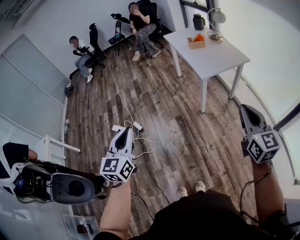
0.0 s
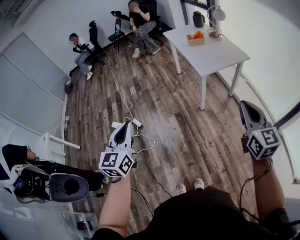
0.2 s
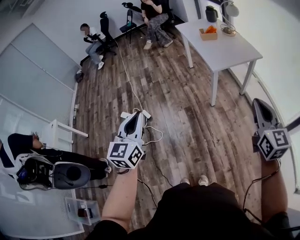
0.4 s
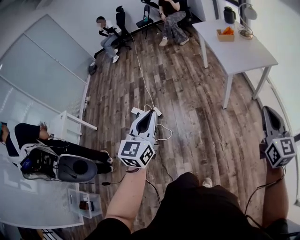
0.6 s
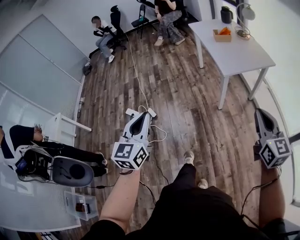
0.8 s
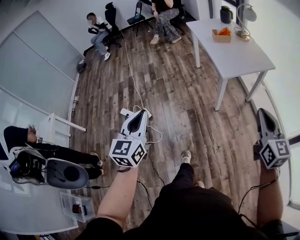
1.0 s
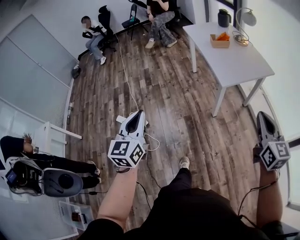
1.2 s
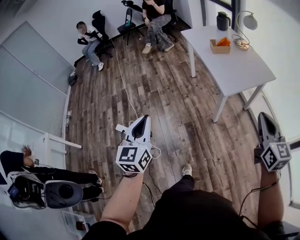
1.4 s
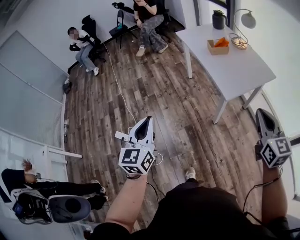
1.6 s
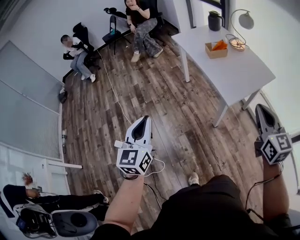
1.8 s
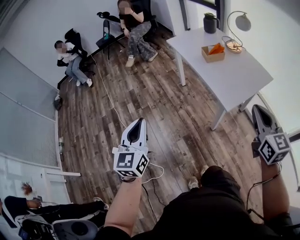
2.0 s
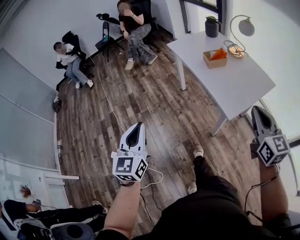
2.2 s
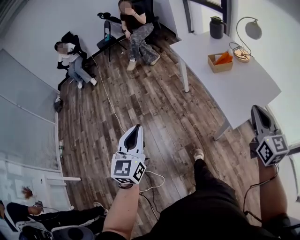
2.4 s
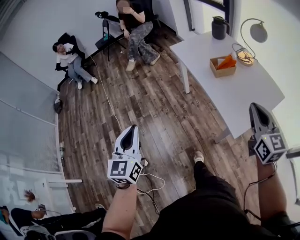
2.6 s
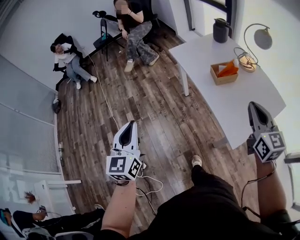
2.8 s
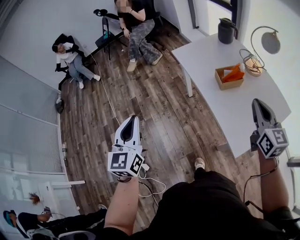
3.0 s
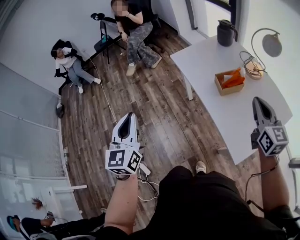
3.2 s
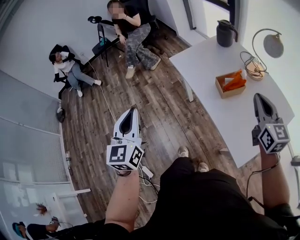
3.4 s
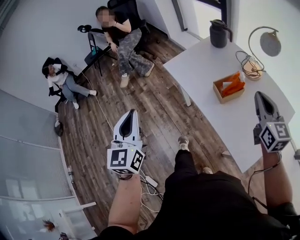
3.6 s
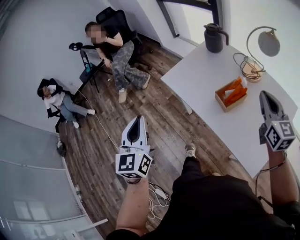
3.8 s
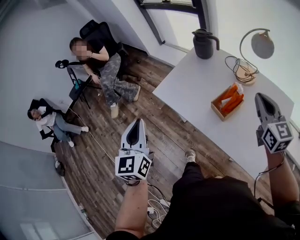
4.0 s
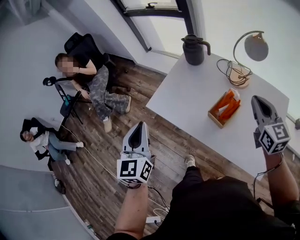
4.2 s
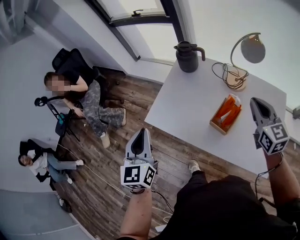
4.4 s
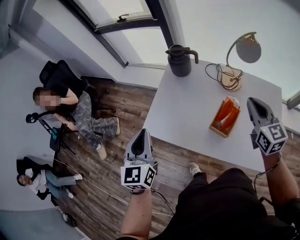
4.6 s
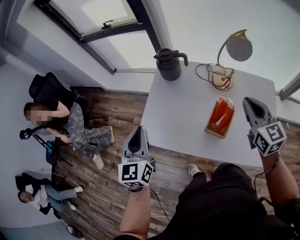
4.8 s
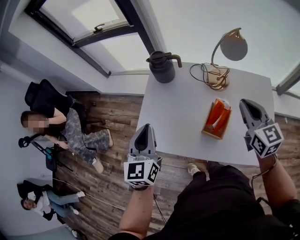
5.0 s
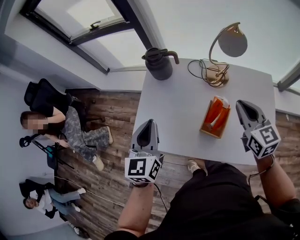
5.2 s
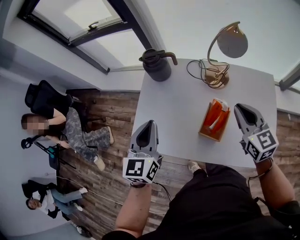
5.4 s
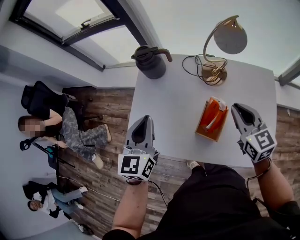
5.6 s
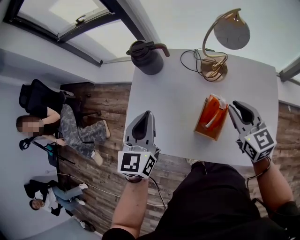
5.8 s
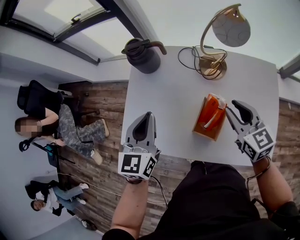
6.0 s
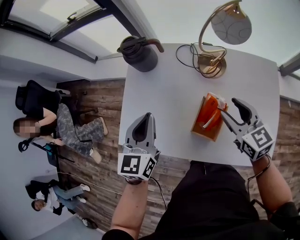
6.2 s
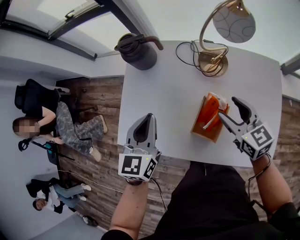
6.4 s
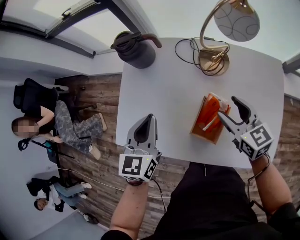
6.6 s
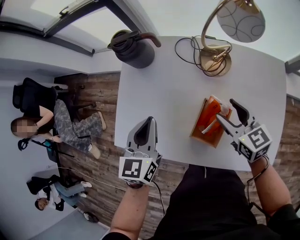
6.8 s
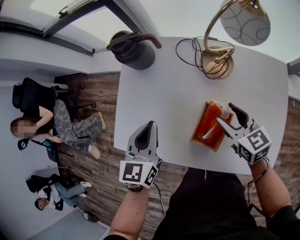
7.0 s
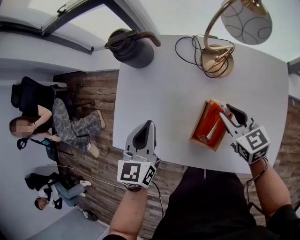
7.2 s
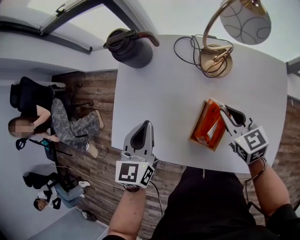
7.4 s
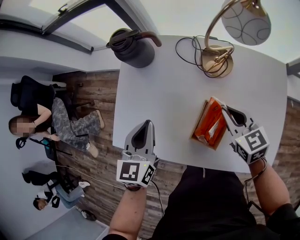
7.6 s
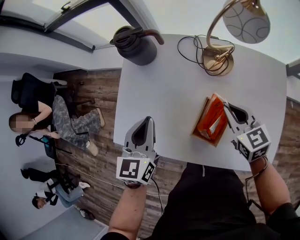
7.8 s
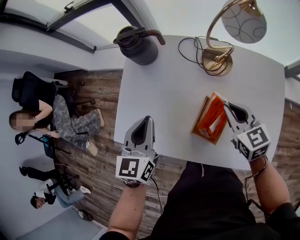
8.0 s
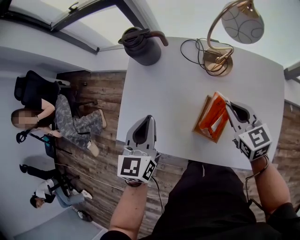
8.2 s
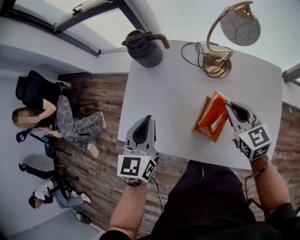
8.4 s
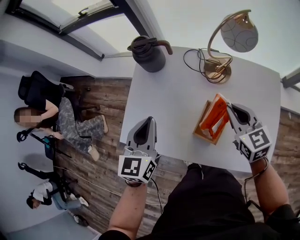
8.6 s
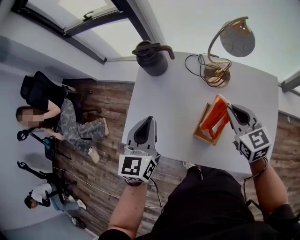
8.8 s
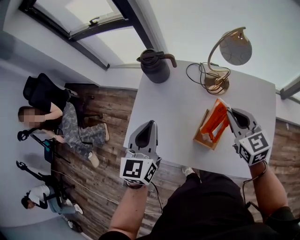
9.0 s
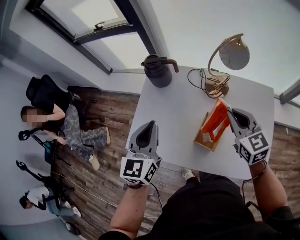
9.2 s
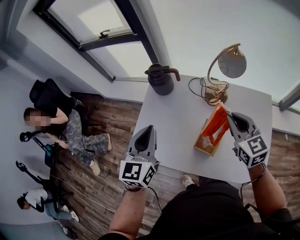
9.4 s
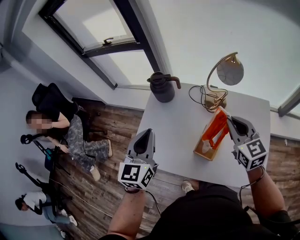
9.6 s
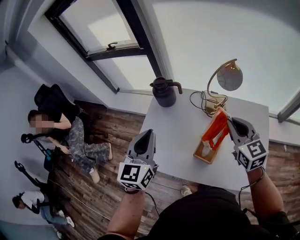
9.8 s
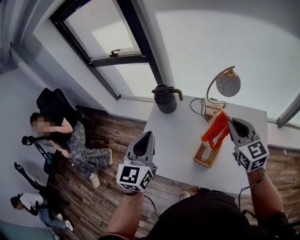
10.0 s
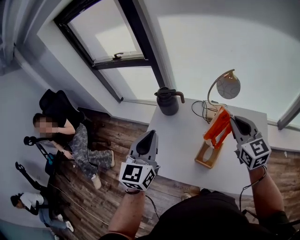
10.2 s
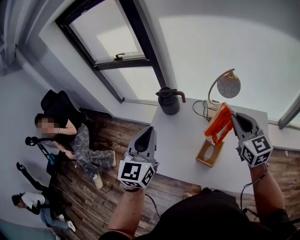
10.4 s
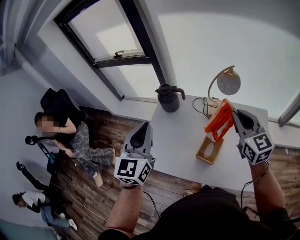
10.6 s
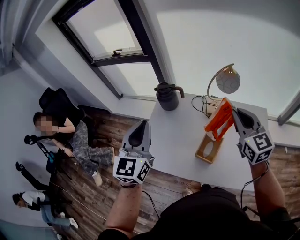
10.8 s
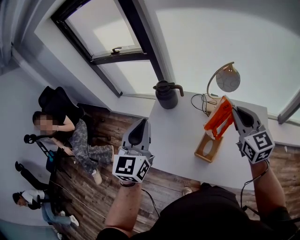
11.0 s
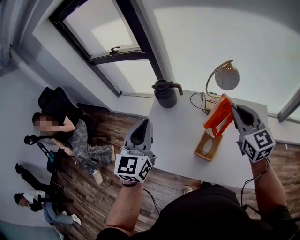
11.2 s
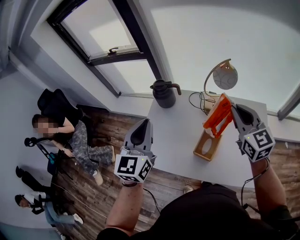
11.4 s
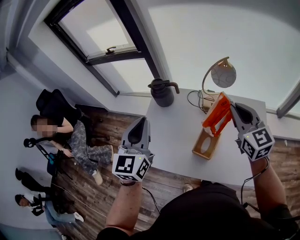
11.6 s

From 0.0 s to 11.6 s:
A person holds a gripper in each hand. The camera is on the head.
From 0.0 s to 1.4 s: The grippers both shift forward by about 25 cm.
From 1.4 s to 2.8 s: The pair of grippers is taken forward, some 40 cm.
From 2.8 s to 4.4 s: The left gripper ends up approximately 60 cm from where it was, and changes its angle by some 30 degrees; the right gripper changes place by some 35 cm, and changes its angle by some 30 degrees.
From 4.4 s to 5.8 s: The right gripper is displaced downward by some 10 cm. Meanwhile the left gripper goes some 25 cm forward and to the right, and changes its angle by some 30 degrees.
From 5.8 s to 7.2 s: Both grippers travel together downward, about 10 cm. The right gripper opens, then closes once more.
From 7.2 s to 8.8 s: The grippers both shift upward by some 10 cm. The right gripper closes its fingers.
From 8.8 s to 10.2 s: Both grippers move upward, approximately 15 cm.
From 10.2 s to 11.6 s: The grippers move only a little.

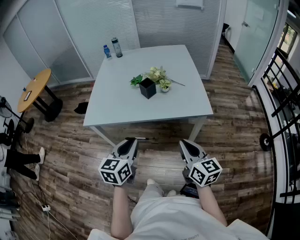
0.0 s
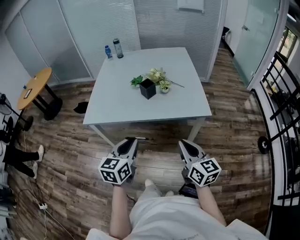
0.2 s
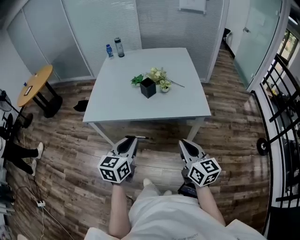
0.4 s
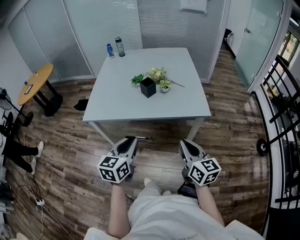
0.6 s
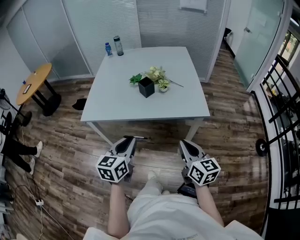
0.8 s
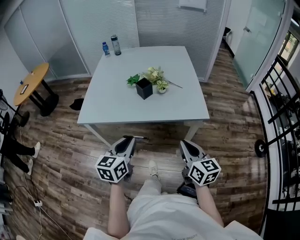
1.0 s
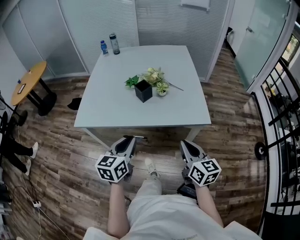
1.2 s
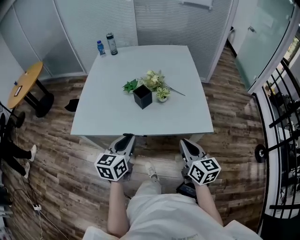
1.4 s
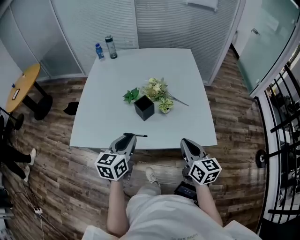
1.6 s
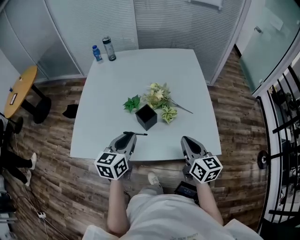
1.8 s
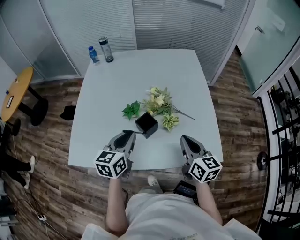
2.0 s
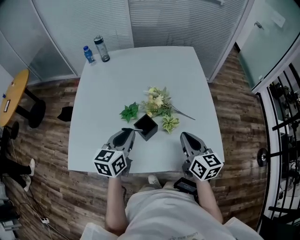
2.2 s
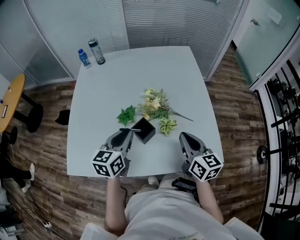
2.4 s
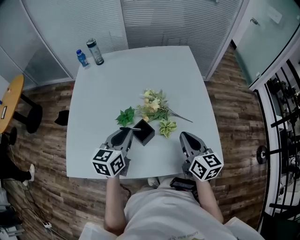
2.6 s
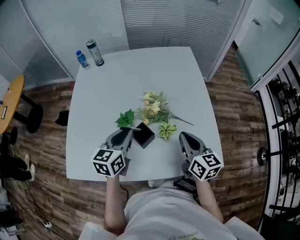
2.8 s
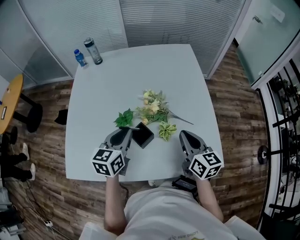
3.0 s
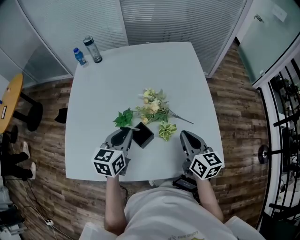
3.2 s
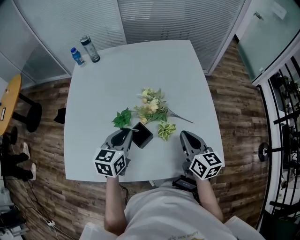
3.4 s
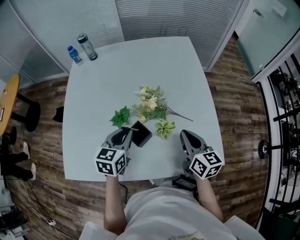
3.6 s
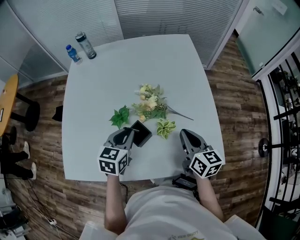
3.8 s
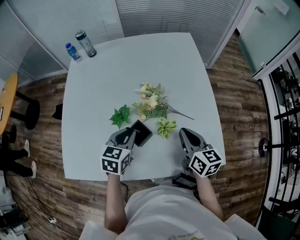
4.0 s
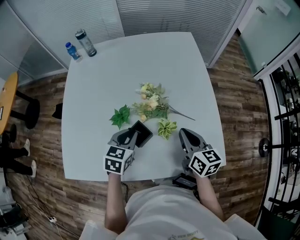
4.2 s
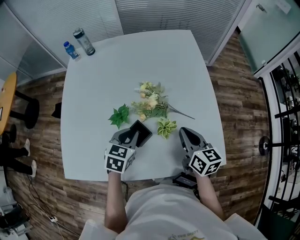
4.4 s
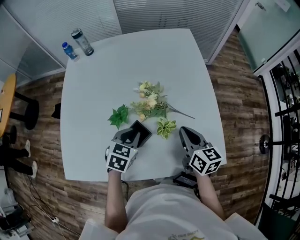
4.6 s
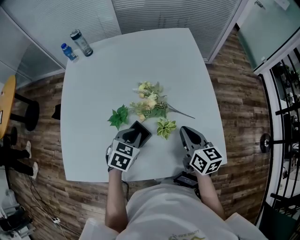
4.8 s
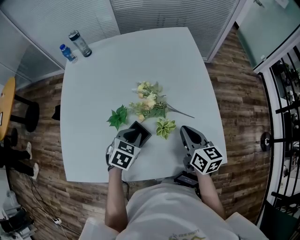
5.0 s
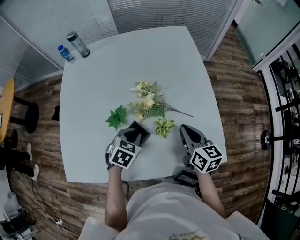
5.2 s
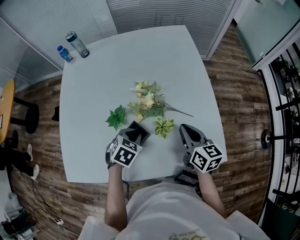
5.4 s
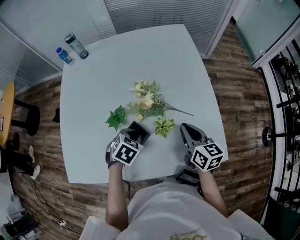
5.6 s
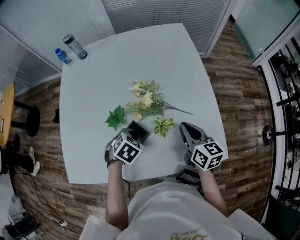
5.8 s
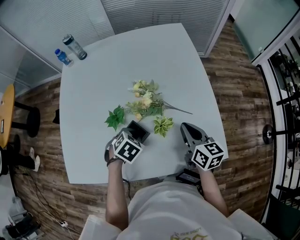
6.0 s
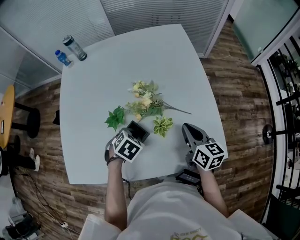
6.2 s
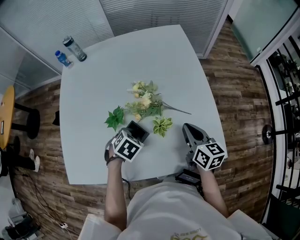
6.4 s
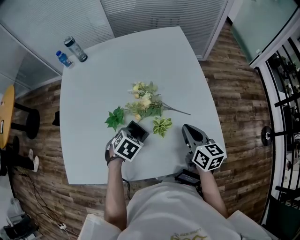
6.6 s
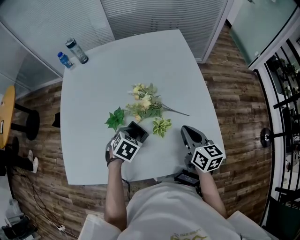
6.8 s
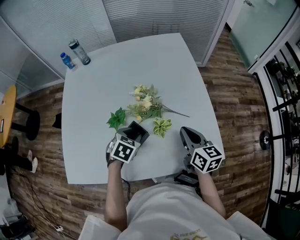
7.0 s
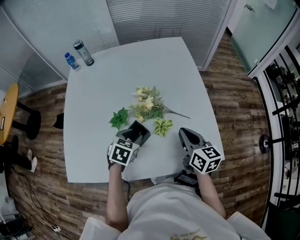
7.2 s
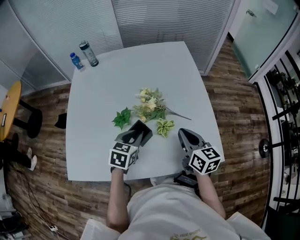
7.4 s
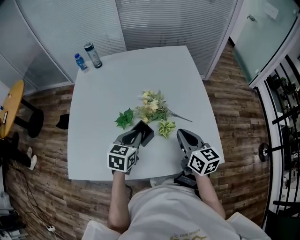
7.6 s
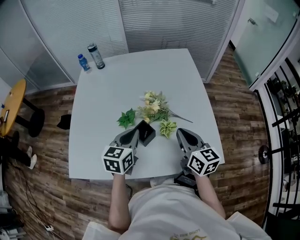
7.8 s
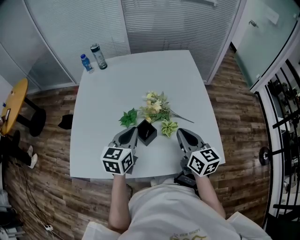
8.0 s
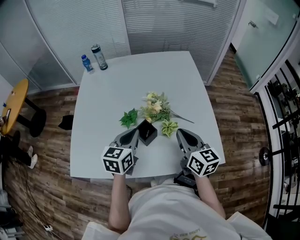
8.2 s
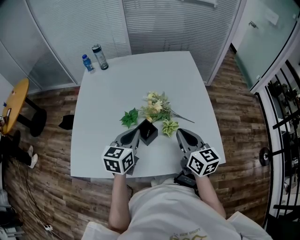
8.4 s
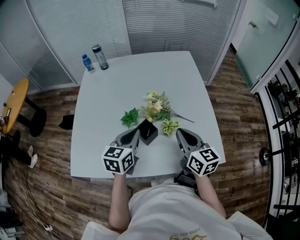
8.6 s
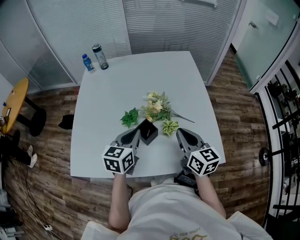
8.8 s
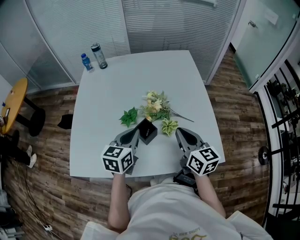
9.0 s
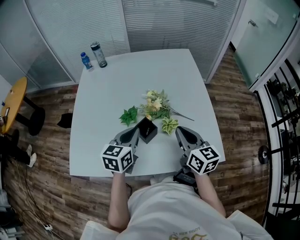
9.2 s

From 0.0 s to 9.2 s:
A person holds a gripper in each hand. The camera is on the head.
From 0.0 s to 1.6 s: Both grippers travel together forward, about 25 cm.
From 1.6 s to 3.0 s: The two grippers go roughly 25 cm forward.
From 3.0 s to 4.6 s: The left gripper shifts approximately 10 cm downward, and swivels about 30 degrees. The right gripper shifts about 5 cm downward.
From 4.6 s to 6.2 s: The left gripper swivels some 30 degrees.
From 6.2 s to 7.6 s: The left gripper goes some 10 cm upward, tips its fingers upward by some 40 degrees, and opens, then closes once more; the right gripper heads upward and backward, covering approximately 10 cm.
From 7.6 s to 9.2 s: The left gripper heads upward, covering approximately 5 cm.

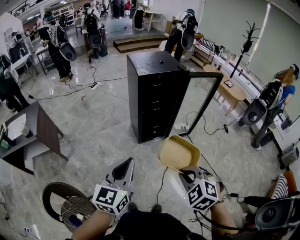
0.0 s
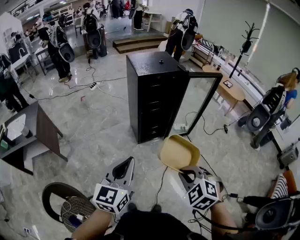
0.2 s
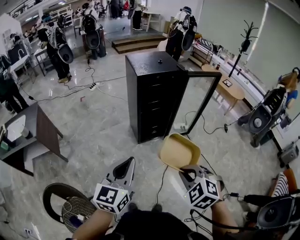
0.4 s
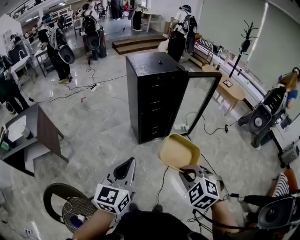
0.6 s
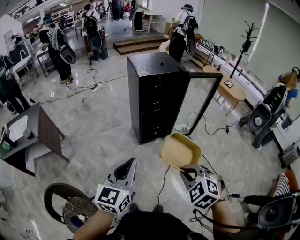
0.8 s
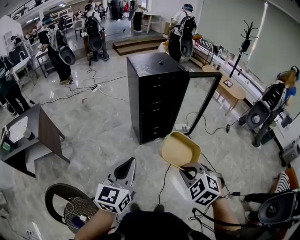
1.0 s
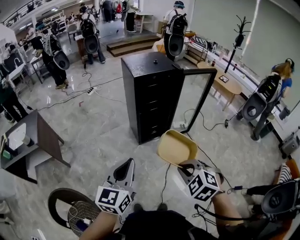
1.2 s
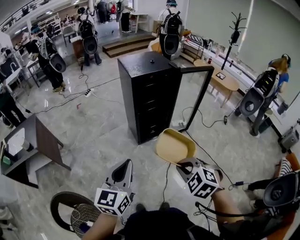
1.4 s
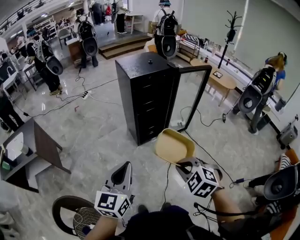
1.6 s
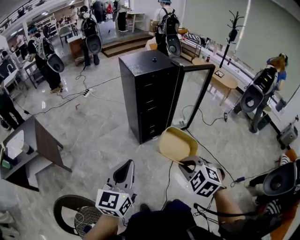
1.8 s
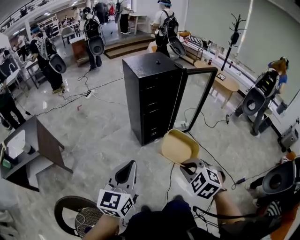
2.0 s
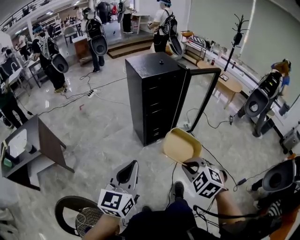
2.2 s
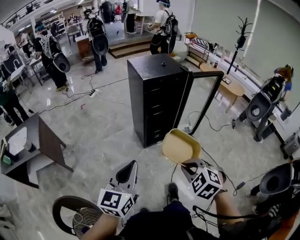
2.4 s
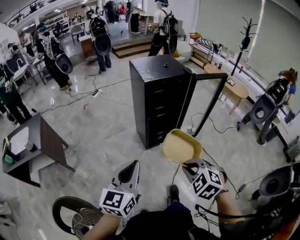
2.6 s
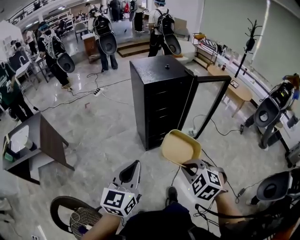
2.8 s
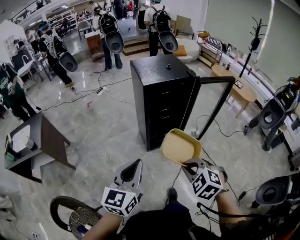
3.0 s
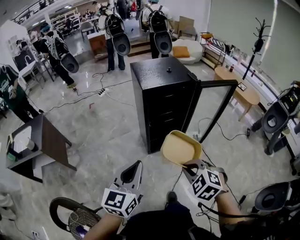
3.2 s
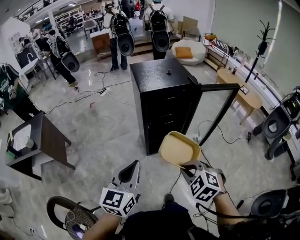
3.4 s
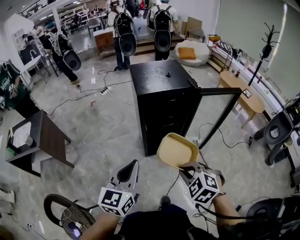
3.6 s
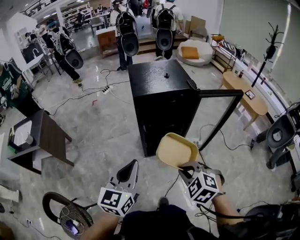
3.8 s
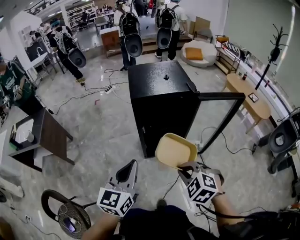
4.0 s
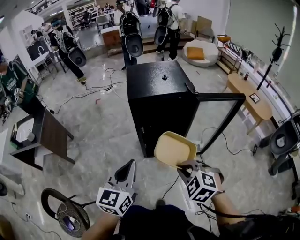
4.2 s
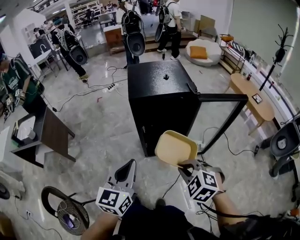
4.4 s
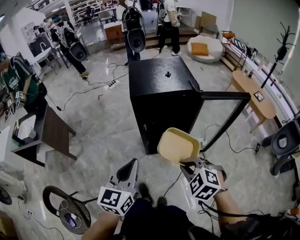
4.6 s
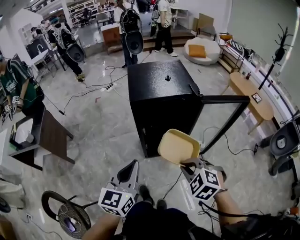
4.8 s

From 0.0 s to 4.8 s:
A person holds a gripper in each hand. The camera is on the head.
From 0.0 s to 1.6 s: There are only small adjustments of the grippers.
From 1.6 s to 3.2 s: The right gripper travels forward by some 15 cm, while the left gripper moves forward and to the right, roughly 15 cm.
From 3.2 s to 4.8 s: The left gripper shifts roughly 15 cm to the right and forward, while the right gripper is displaced forward and to the right by about 15 cm.
